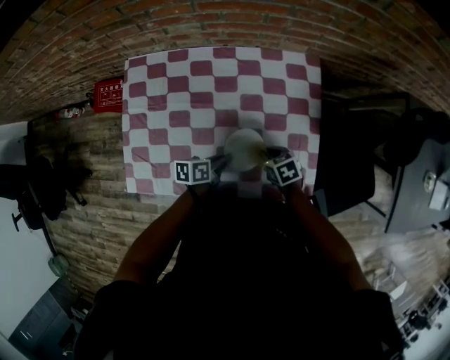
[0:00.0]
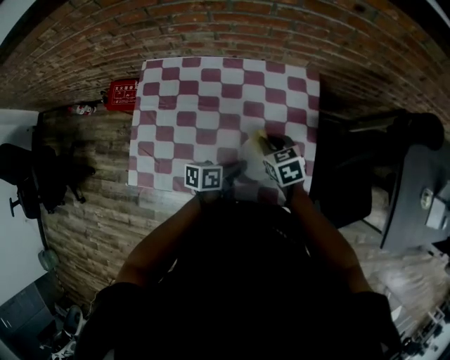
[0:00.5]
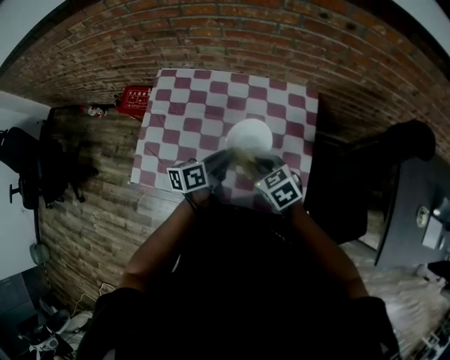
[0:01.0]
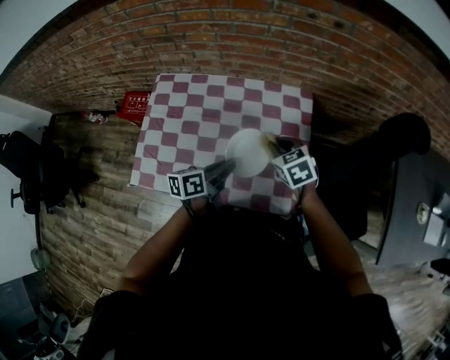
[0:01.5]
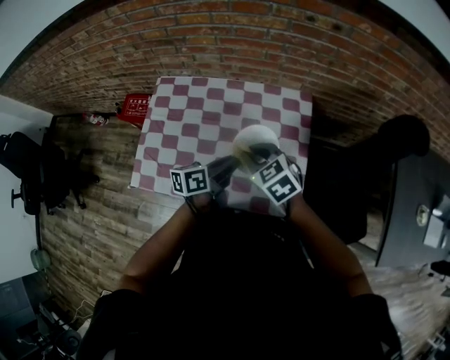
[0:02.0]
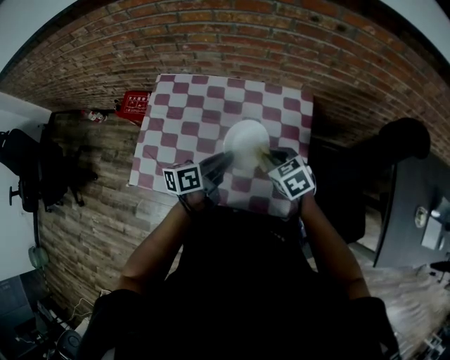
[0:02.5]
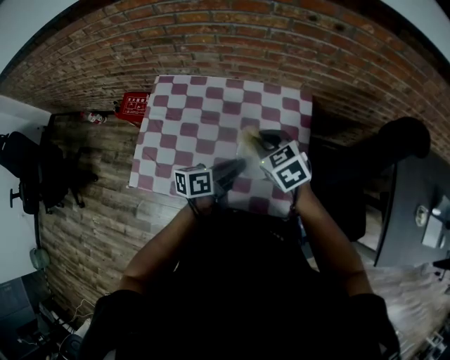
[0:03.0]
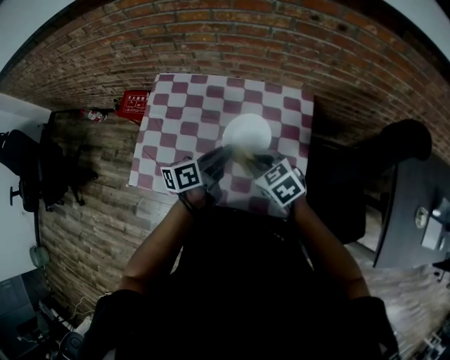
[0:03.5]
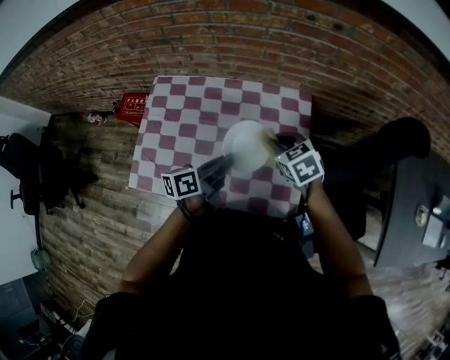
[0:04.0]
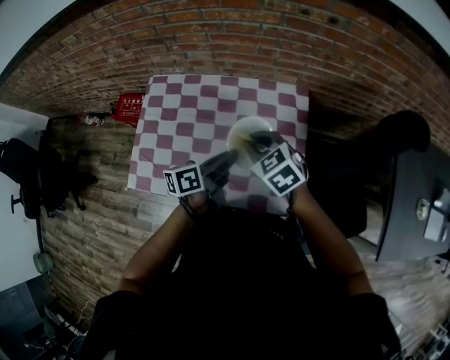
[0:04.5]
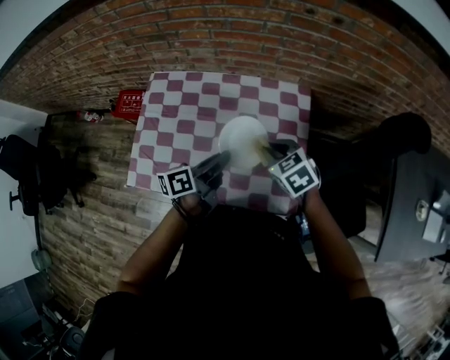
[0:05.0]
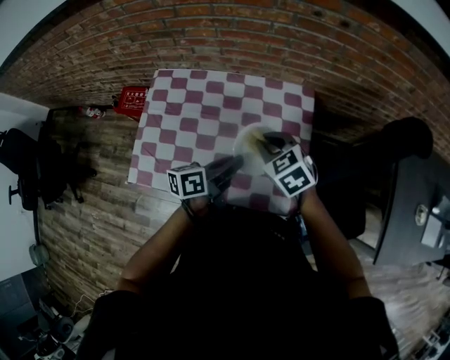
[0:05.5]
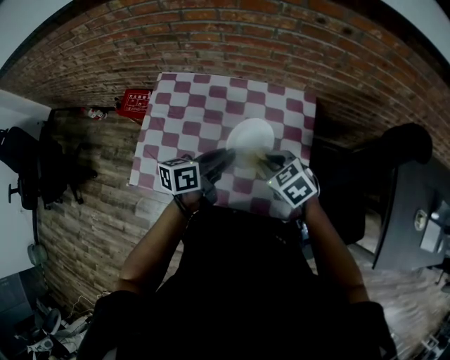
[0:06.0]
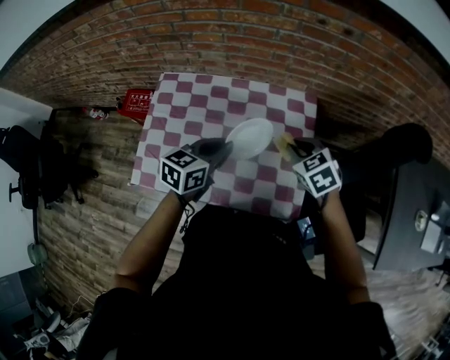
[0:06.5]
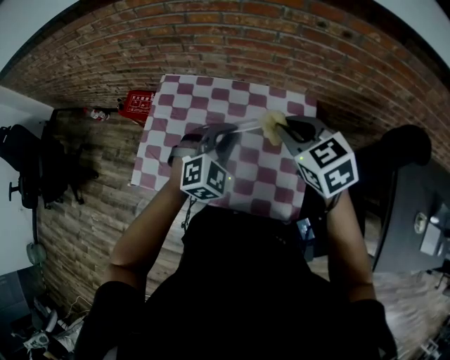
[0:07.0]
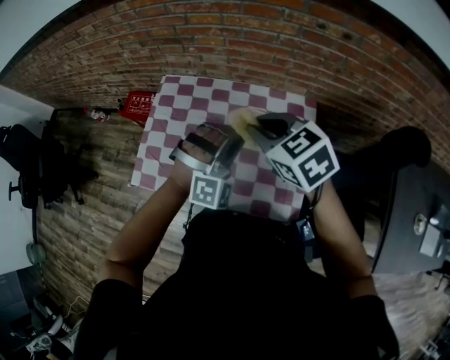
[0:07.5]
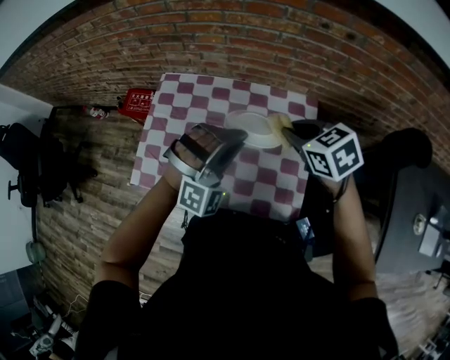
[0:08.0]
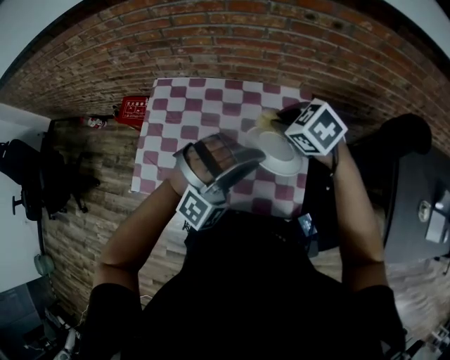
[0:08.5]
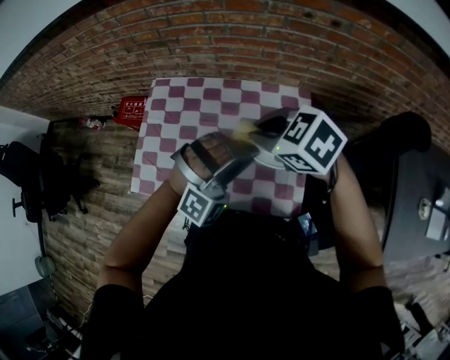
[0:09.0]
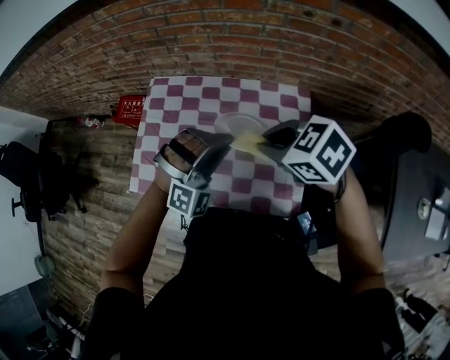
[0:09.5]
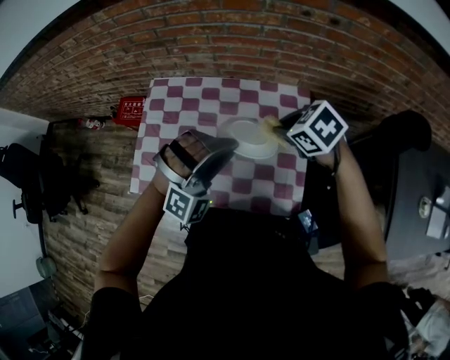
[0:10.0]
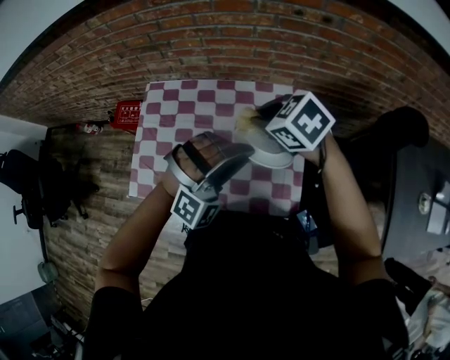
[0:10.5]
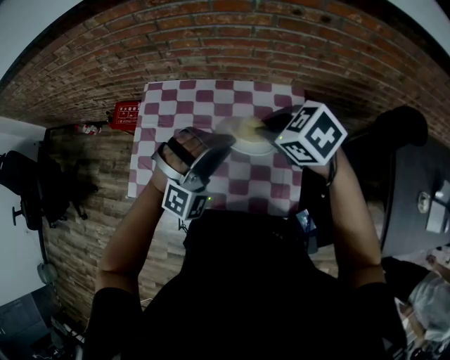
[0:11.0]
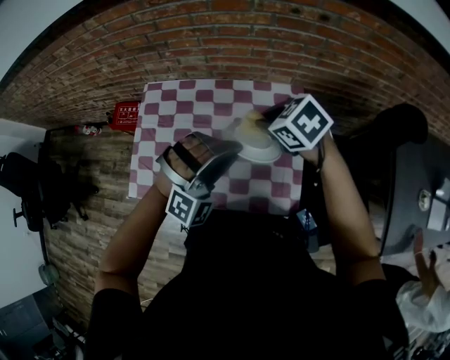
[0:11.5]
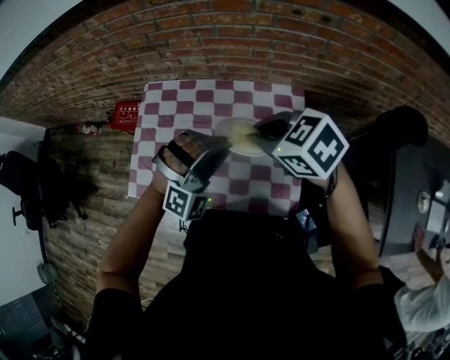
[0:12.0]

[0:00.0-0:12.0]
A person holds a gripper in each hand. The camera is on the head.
0:00.0 to 0:02.0: The two grippers go roughly 20 cm upward. The right gripper turns by some 40 degrees, while the left gripper rotates roughly 30 degrees.
0:02.0 to 0:04.0: The right gripper moves left and right over about 10 cm, changing direction 2 times.
0:04.0 to 0:06.0: The right gripper travels backward by roughly 5 cm.
0:06.0 to 0:08.0: The left gripper moves upward, some 10 cm, and twists about 120 degrees clockwise, seen from behind; the right gripper travels upward and forward by about 15 cm.
0:08.0 to 0:10.0: The right gripper goes to the left and returns, approximately 5 cm each way.
0:10.0 to 0:12.0: The right gripper travels upward and to the left by some 10 cm.

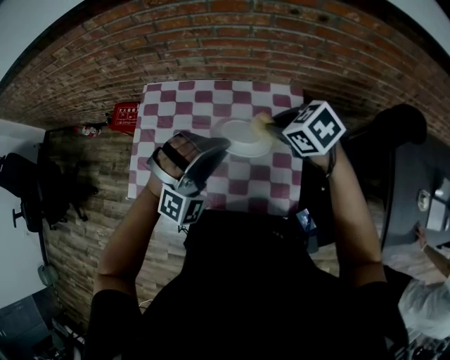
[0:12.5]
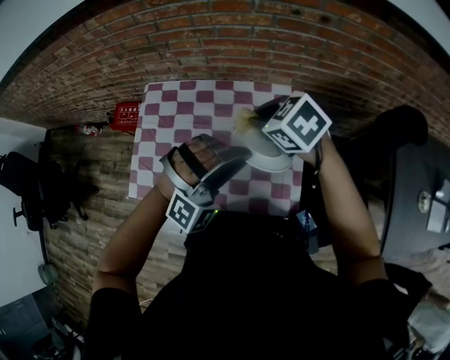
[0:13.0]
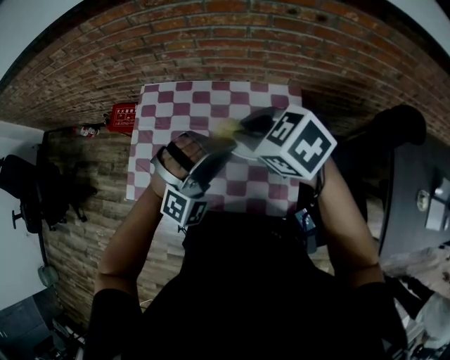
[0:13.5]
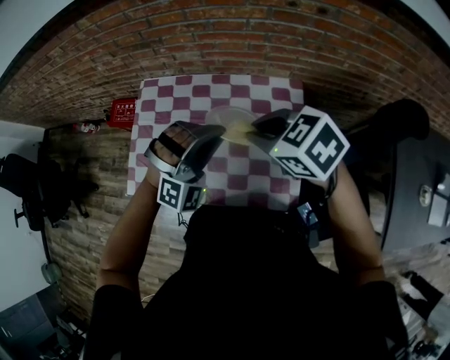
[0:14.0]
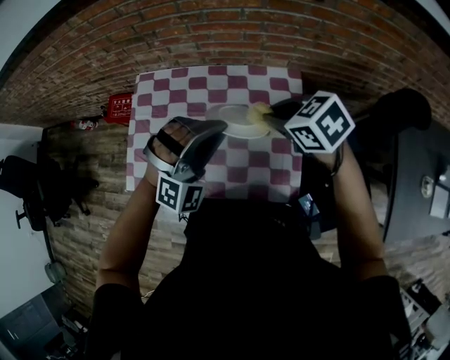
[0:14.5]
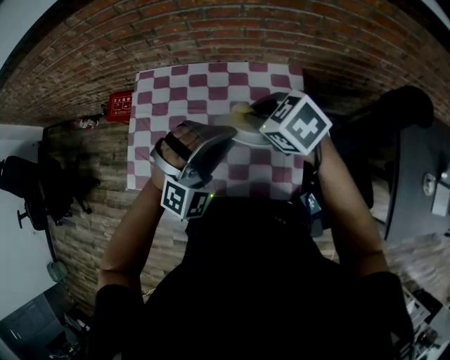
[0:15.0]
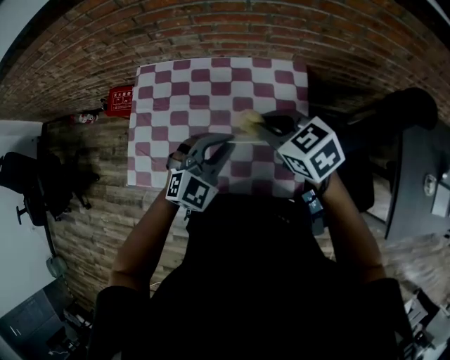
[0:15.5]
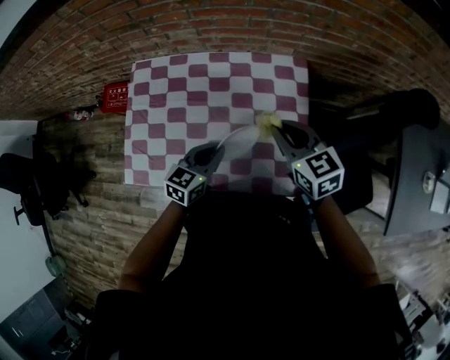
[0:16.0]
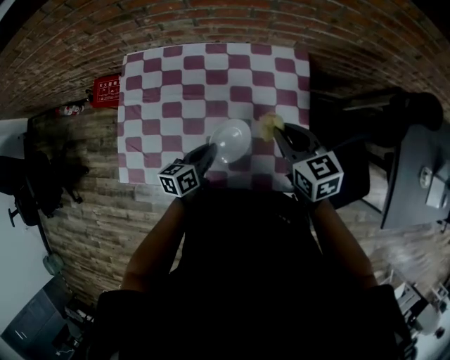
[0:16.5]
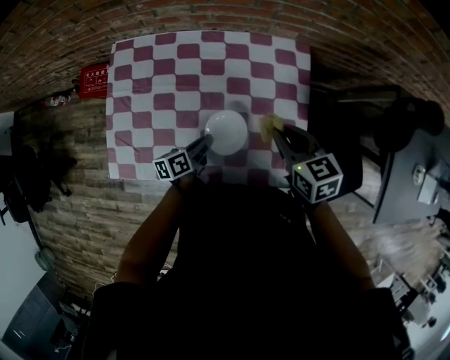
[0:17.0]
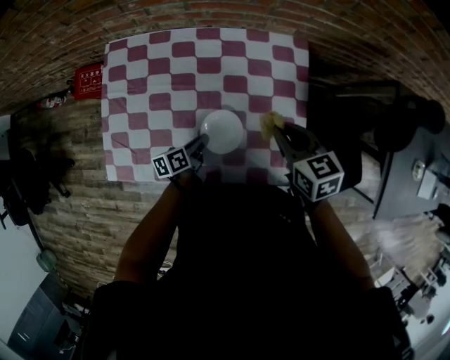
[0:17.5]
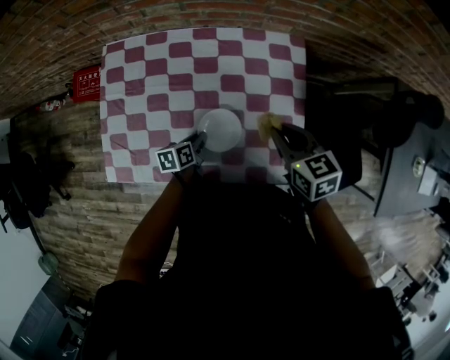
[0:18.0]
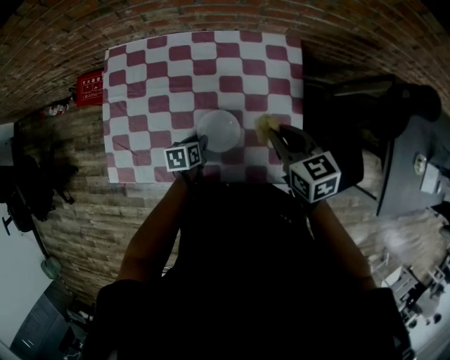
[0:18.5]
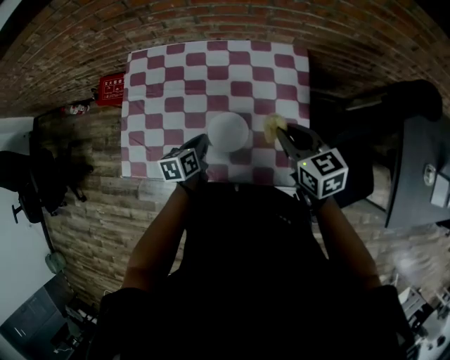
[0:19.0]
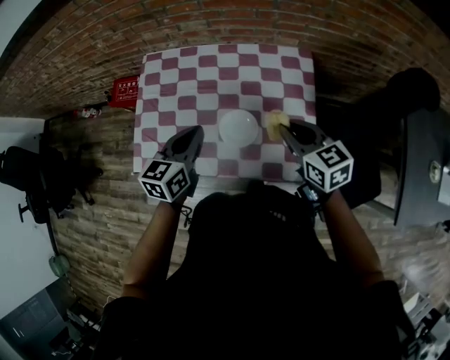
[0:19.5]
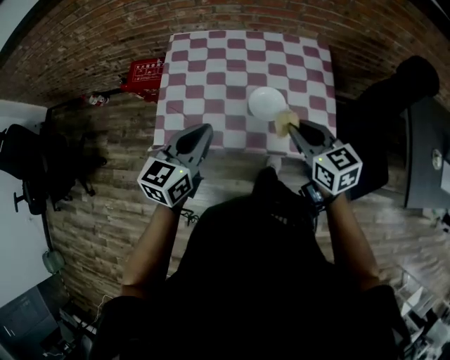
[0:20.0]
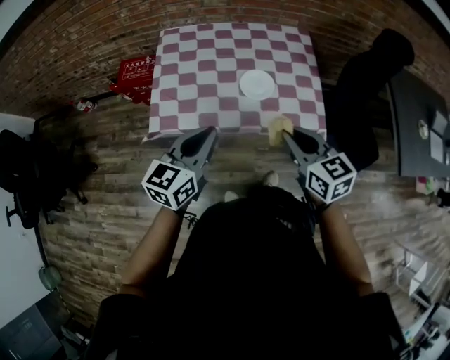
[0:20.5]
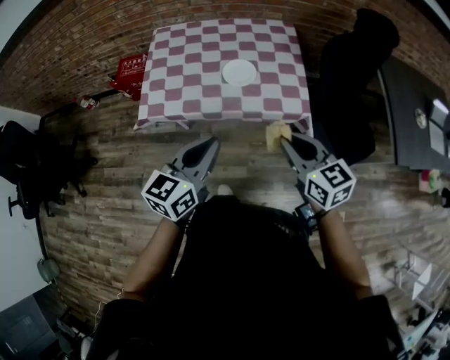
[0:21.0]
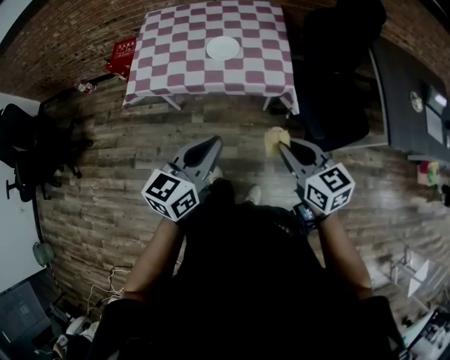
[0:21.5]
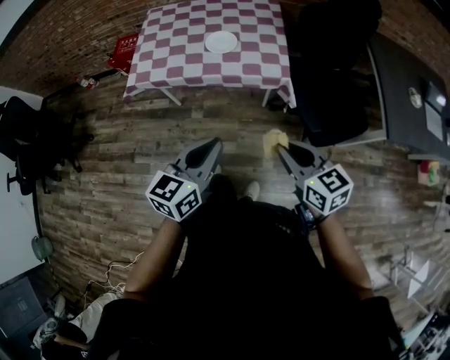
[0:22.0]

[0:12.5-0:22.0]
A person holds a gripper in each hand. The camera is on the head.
0:12.5 to 0:14.5: The right gripper goes to the left and returns, approximately 10 cm each way.
0:14.5 to 0:16.5: The left gripper goes about 25 cm downward, and twists some 120 degrees counterclockwise, seen from behind. The right gripper moves downward, approximately 10 cm, and changes its angle by some 30 degrees.
0:16.5 to 0:18.0: The left gripper travels downward by roughly 10 cm.
0:18.0 to 0:20.0: The left gripper shifts some 35 cm upward and backward, and rotates around the line of its fingers by about 40 degrees, clockwise from behind; the right gripper is displaced backward, to the left and upward by about 20 cm.
0:20.0 to 0:22.0: The two grippers travel together, backward and to the right, about 40 cm.

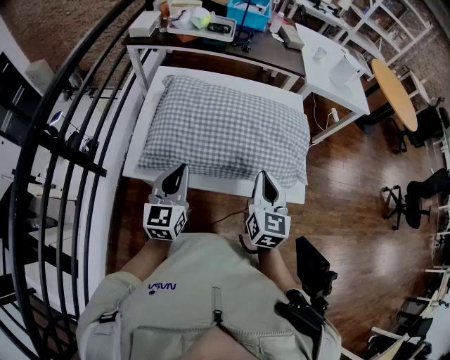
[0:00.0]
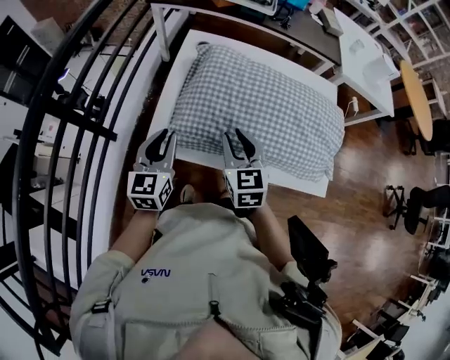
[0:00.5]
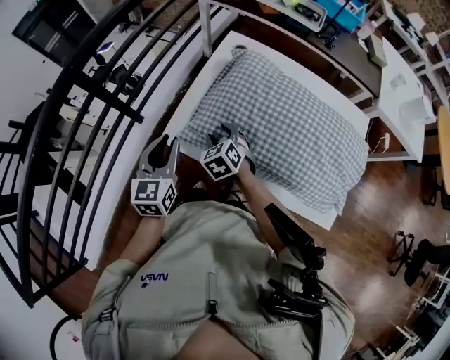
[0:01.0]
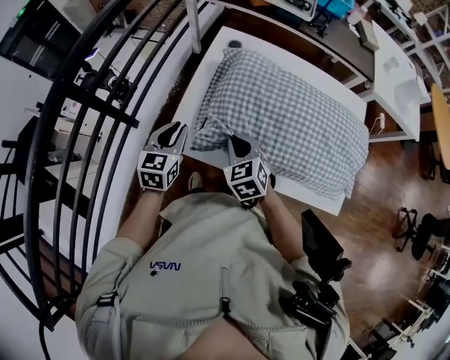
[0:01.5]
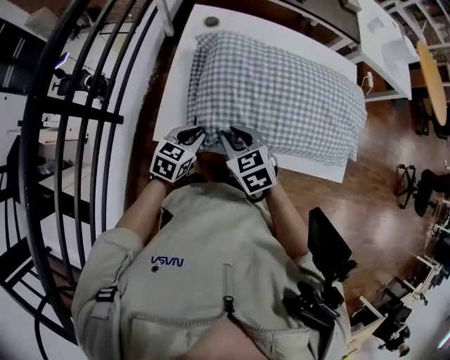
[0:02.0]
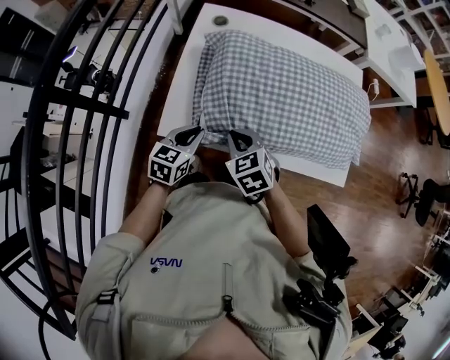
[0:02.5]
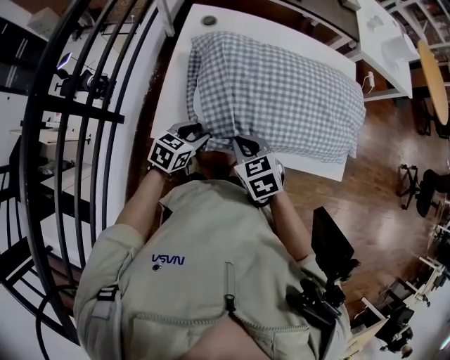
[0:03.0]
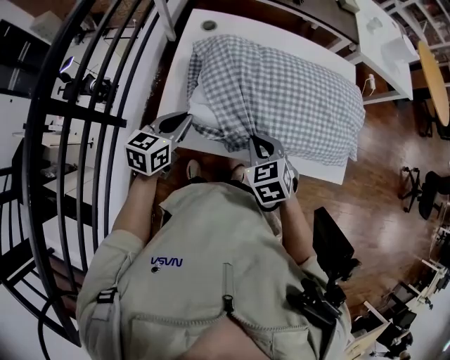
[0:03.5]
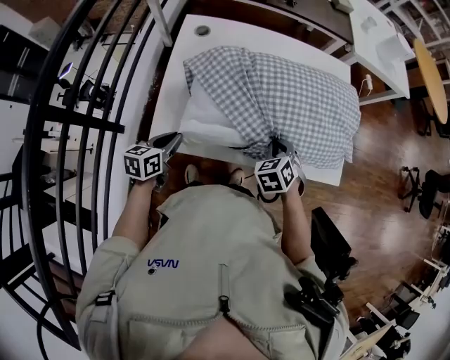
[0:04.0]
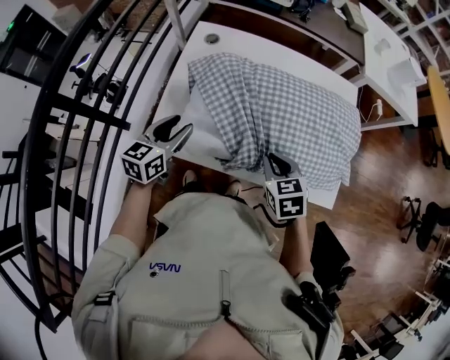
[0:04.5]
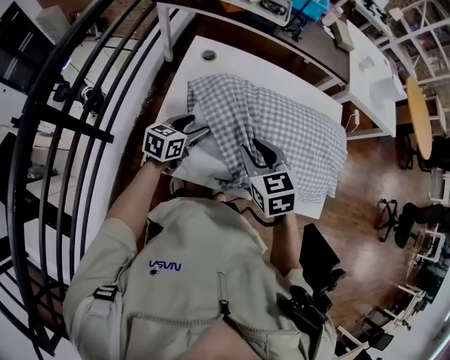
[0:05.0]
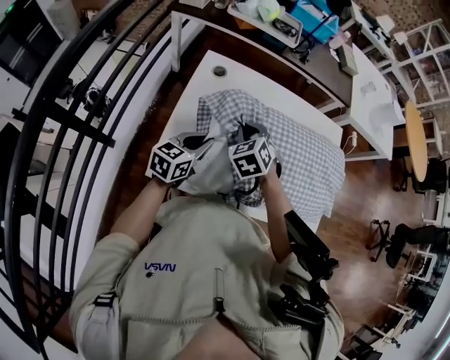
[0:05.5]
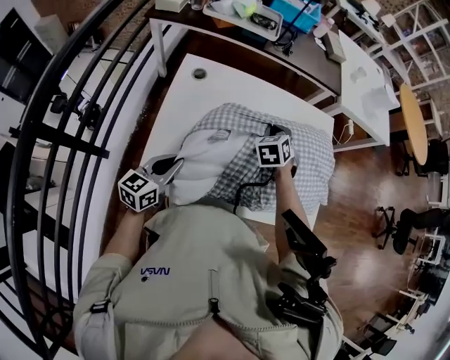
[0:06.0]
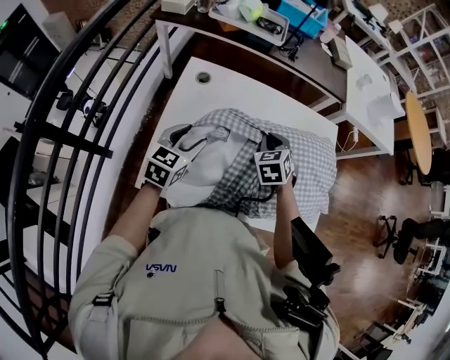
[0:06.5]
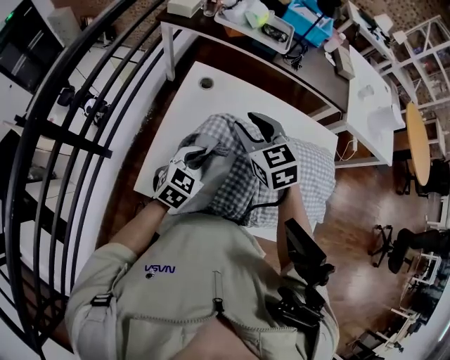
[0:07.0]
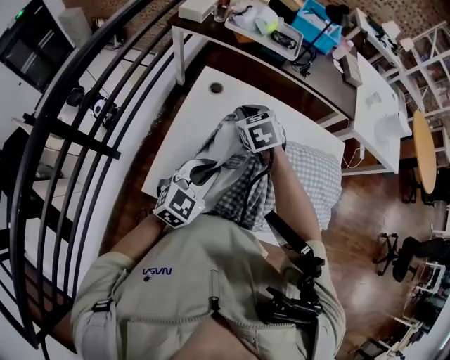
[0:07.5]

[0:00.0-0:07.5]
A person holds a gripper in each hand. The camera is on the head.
0:00.0 to 0:02.0: The right gripper shifts by roughly 30 cm, points its fingers about 30 degrees further downward, and opens, then closes again, while the left gripper moves downward, approximately 15 cm, and changes its angle by approximately 40 degrees.
0:02.0 to 0:04.0: The right gripper is displaced to the right by roughly 20 cm, and changes its angle by approximately 30 degrees, while the left gripper is displaced to the left by some 5 cm, moves approximately 10 cm upward and comes back, and turns by some 20 degrees.
0:04.0 to 0:05.5: The left gripper travels forward and upward by approximately 15 cm, and opens, then closes again; the right gripper heads to the left, forward and upward, covering roughly 25 cm, and opens, then closes once more.
0:05.5 to 0:07.5: The right gripper ends up about 10 cm from where it was, and opens and closes again, while the left gripper heads upward, covering about 5 cm, rotates approximately 30 degrees, and opens and closes again.
